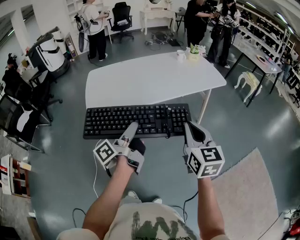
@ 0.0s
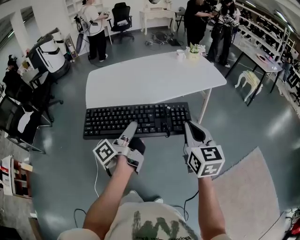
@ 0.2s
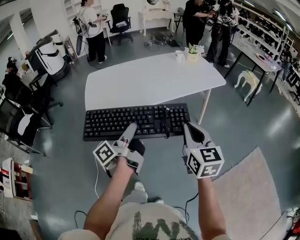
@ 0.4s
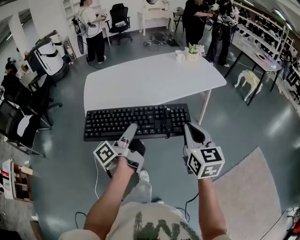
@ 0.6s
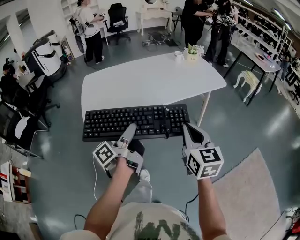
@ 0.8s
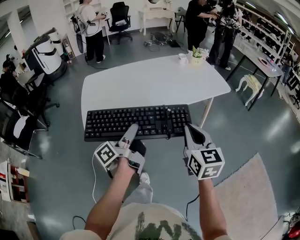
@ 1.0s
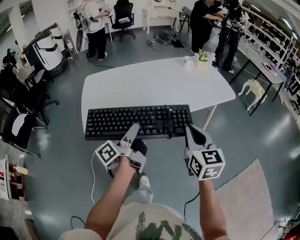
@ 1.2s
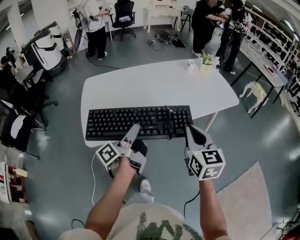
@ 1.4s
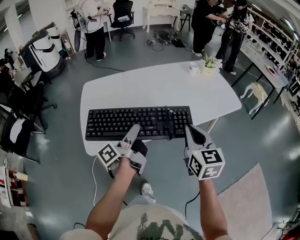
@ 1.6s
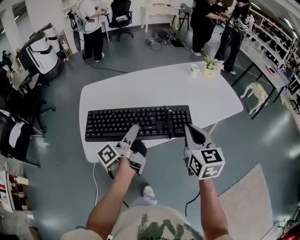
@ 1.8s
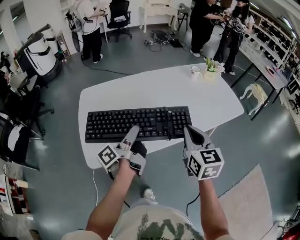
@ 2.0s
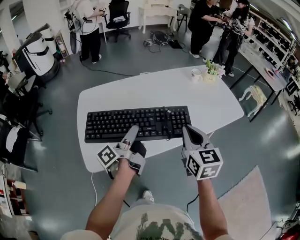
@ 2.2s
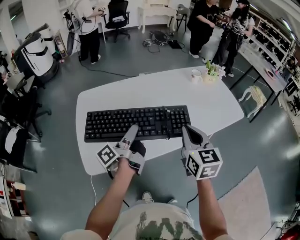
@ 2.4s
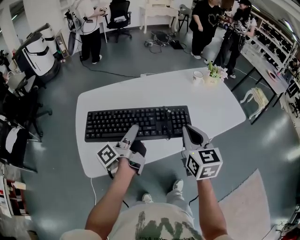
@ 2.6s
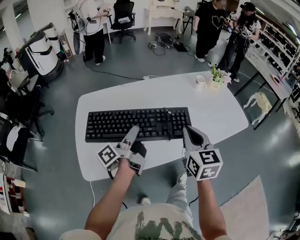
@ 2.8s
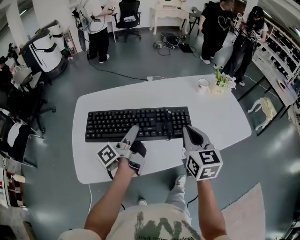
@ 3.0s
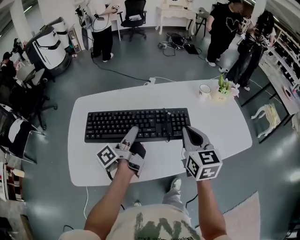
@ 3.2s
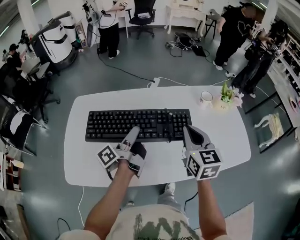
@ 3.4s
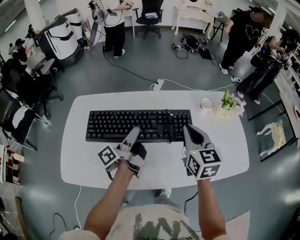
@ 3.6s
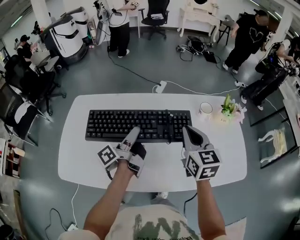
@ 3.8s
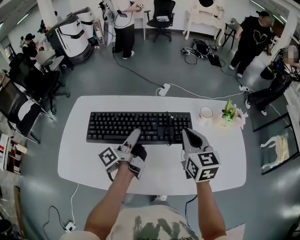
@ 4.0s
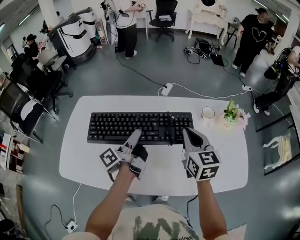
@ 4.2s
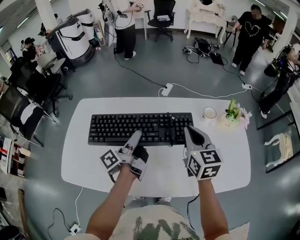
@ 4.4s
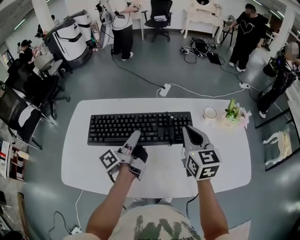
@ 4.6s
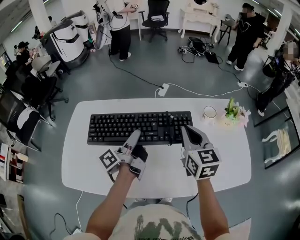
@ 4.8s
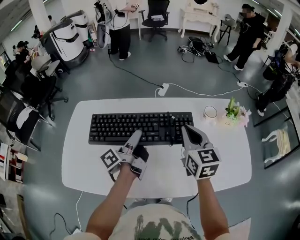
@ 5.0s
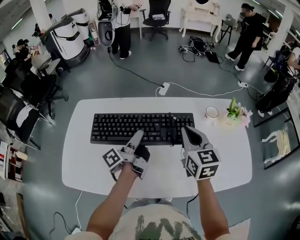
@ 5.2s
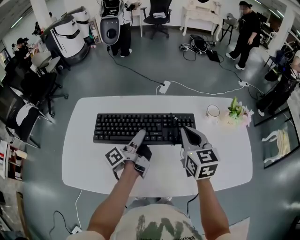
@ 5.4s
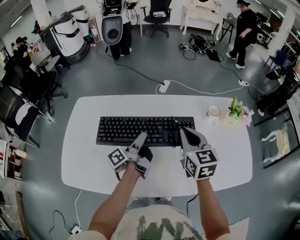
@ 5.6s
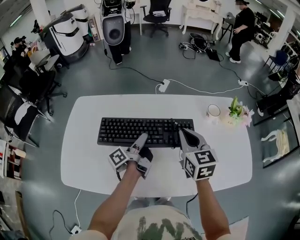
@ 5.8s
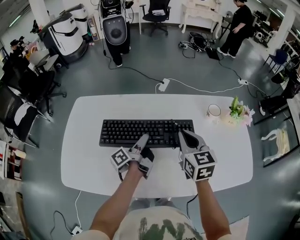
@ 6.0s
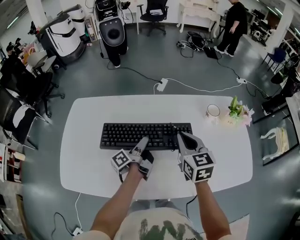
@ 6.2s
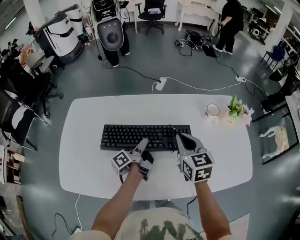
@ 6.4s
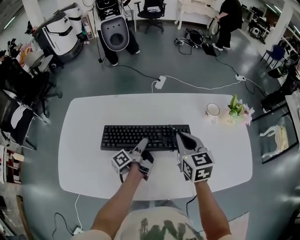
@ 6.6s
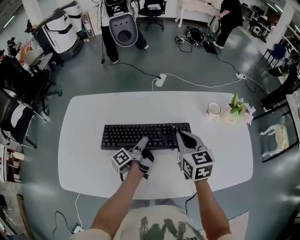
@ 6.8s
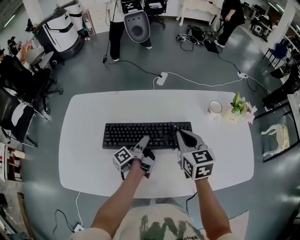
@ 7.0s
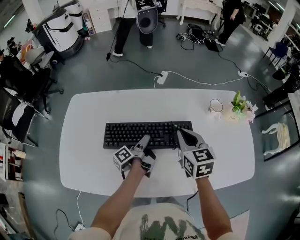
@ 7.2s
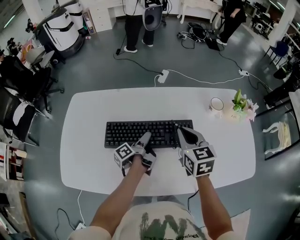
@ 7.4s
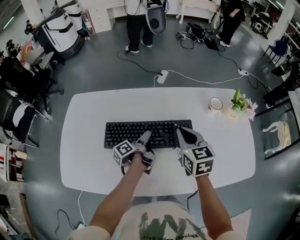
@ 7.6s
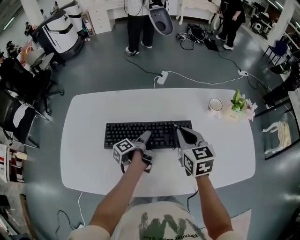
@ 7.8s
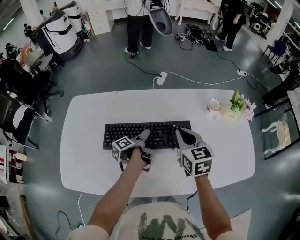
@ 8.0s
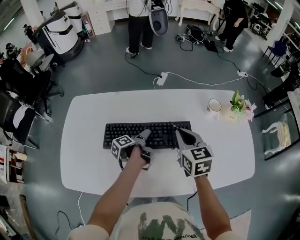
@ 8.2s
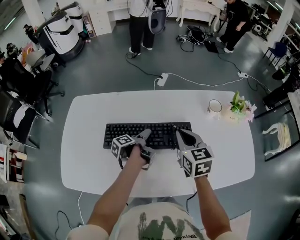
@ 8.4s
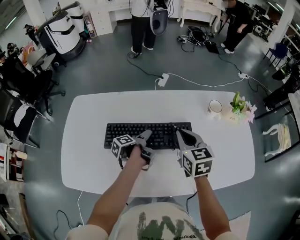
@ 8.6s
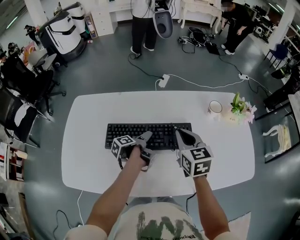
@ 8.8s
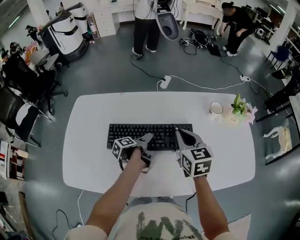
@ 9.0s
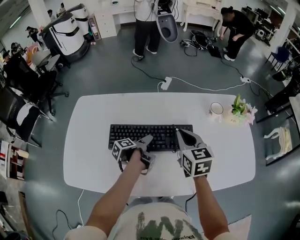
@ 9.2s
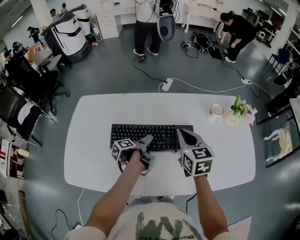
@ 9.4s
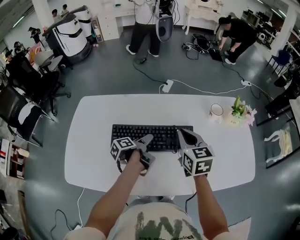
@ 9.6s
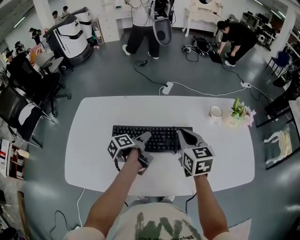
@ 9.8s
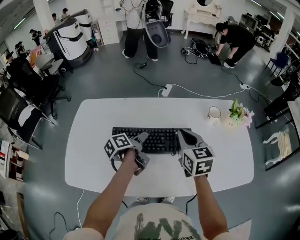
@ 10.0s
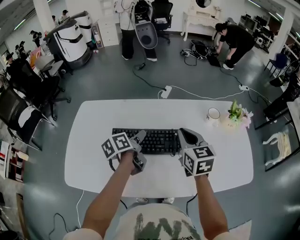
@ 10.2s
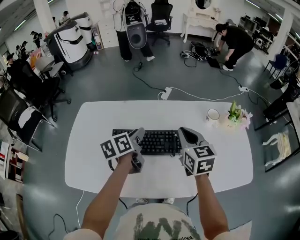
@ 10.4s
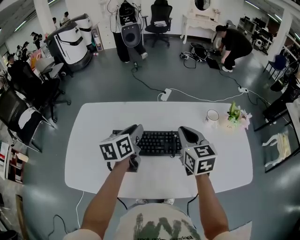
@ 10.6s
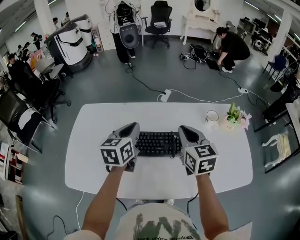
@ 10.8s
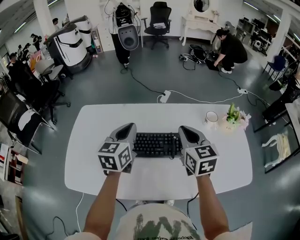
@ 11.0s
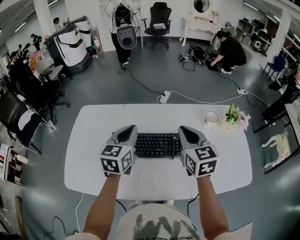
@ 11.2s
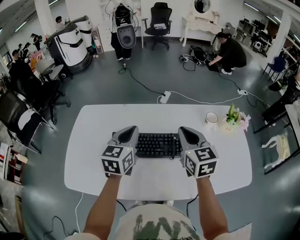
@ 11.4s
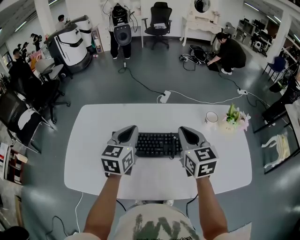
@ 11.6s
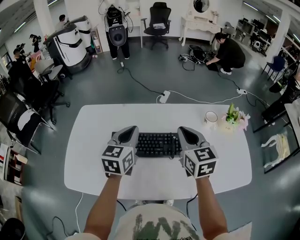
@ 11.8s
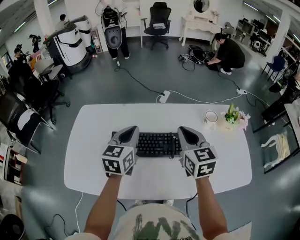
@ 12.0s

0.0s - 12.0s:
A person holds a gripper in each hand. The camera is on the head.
0.0s - 1.6s: The right gripper changes place by about 25 cm.
1.6s - 3.0s: The right gripper ends up roughly 20 cm from where it was.
3.0s - 4.4s: The right gripper changes place by roughly 20 cm.
4.4s - 6.0s: The right gripper moves roughly 5 cm.
9.0s - 10.4s: The right gripper goes some 5 cm upward.

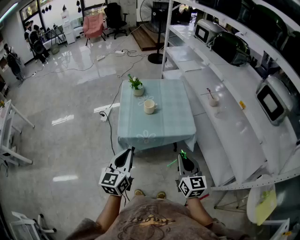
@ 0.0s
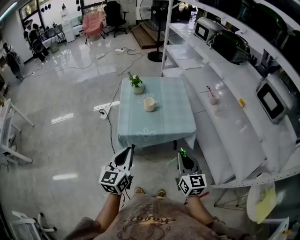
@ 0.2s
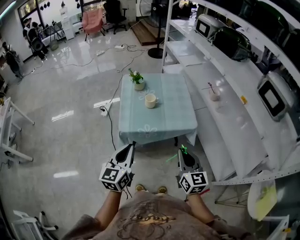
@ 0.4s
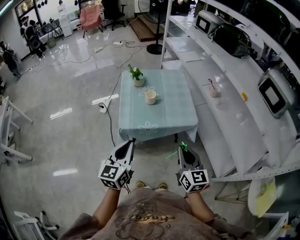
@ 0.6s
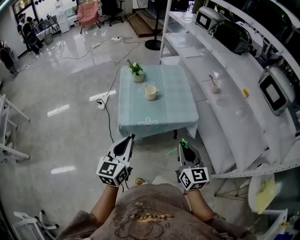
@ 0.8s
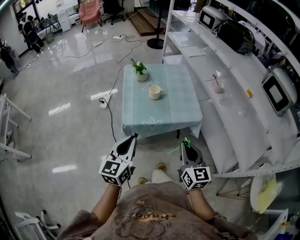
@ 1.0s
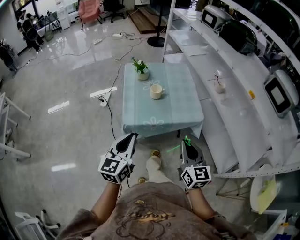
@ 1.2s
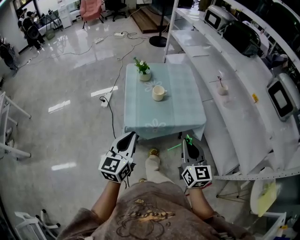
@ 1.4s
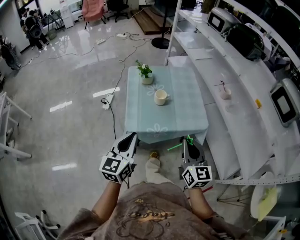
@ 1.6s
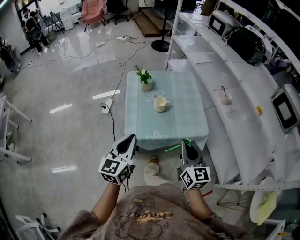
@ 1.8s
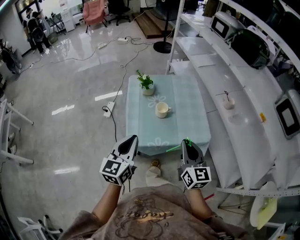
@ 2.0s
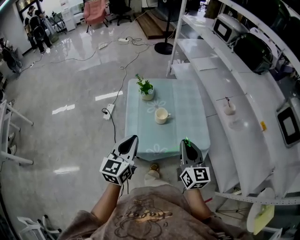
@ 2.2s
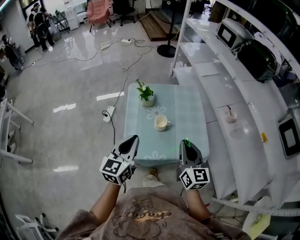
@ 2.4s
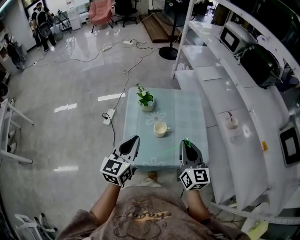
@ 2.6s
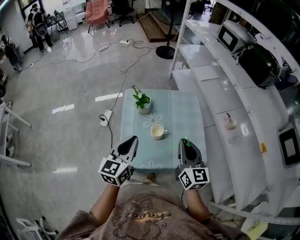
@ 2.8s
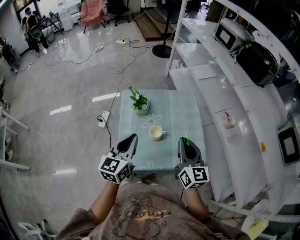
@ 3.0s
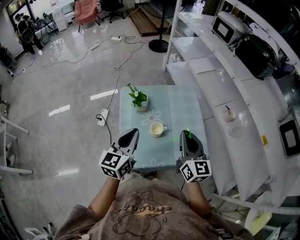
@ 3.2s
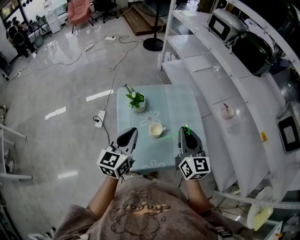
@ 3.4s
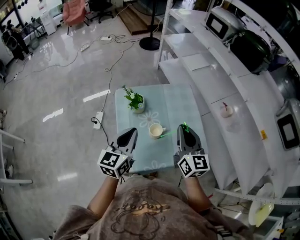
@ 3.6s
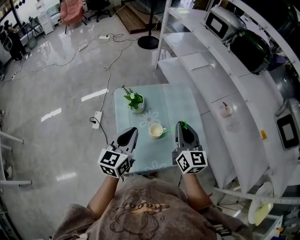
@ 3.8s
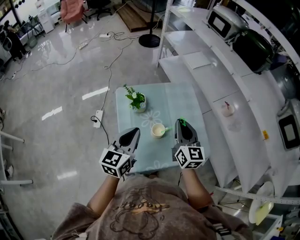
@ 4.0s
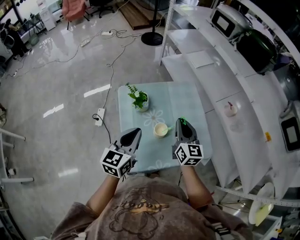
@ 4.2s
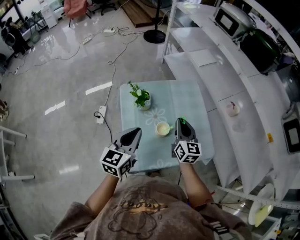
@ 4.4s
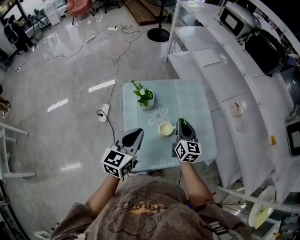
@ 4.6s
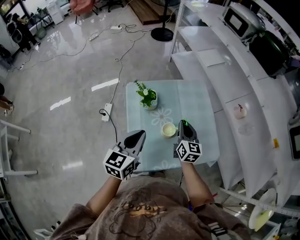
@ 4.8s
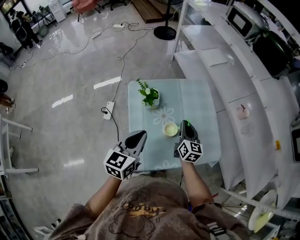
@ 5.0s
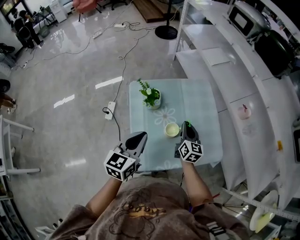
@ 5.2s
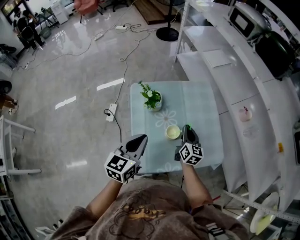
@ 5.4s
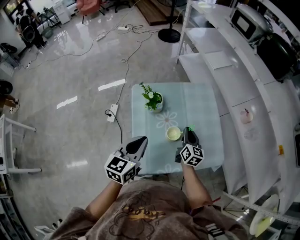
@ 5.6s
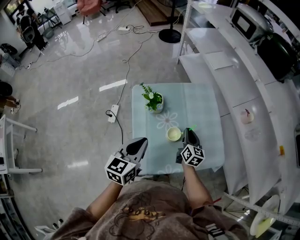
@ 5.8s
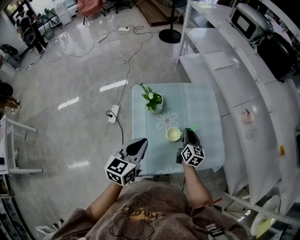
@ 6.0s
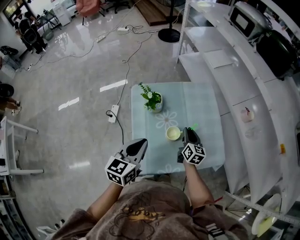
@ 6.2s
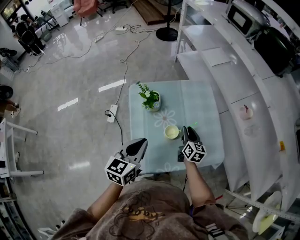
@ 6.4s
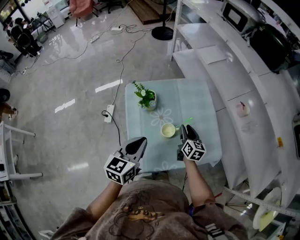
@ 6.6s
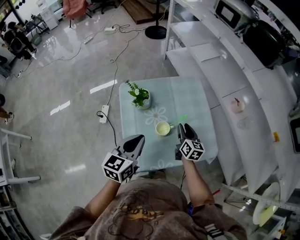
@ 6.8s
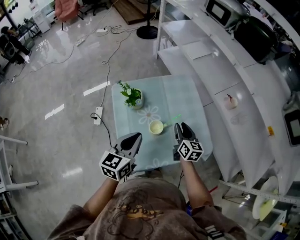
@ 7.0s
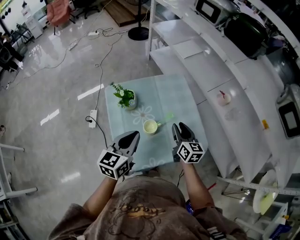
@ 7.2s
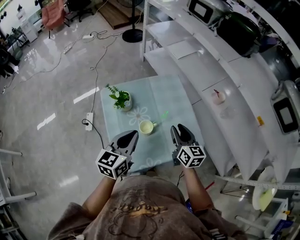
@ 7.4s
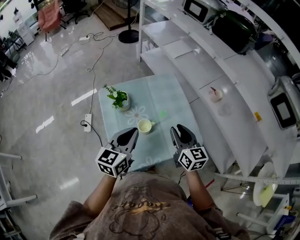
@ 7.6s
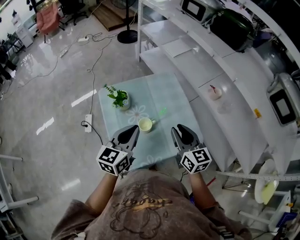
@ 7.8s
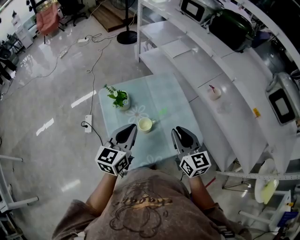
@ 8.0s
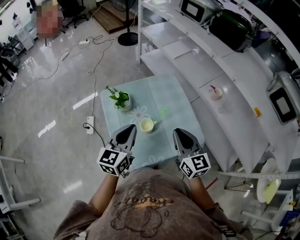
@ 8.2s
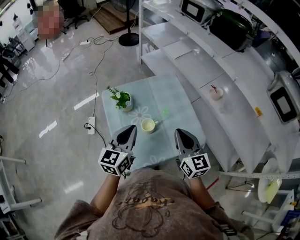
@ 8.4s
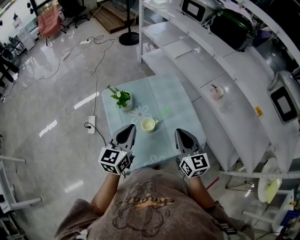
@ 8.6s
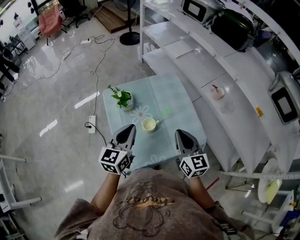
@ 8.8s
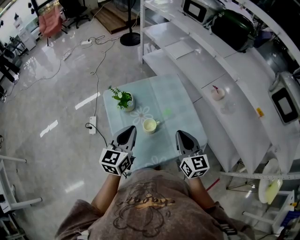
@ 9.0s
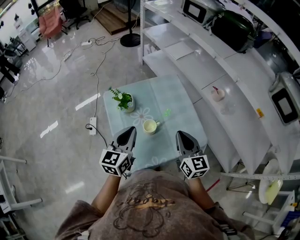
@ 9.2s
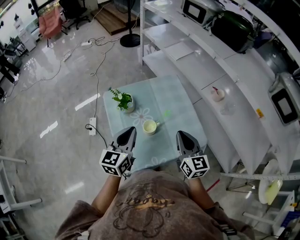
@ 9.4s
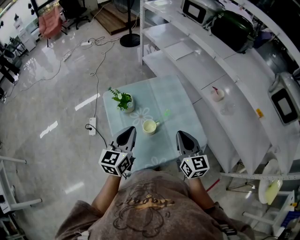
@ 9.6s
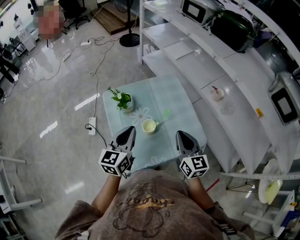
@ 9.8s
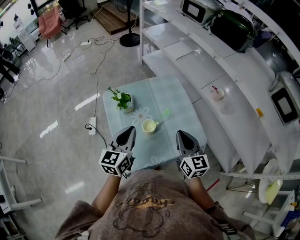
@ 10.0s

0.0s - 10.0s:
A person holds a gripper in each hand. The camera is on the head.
0.0s - 1.4s: The grippers both shift to the left and forward by about 10 cm.
1.4s - 2.8s: The grippers both shift forward by approximately 30 cm.
2.8s - 4.2s: The left gripper heads forward, covering roughly 10 cm; the right gripper travels forward, downward and to the left by about 15 cm.
4.2s - 5.8s: The right gripper goes some 15 cm downward.
5.8s - 7.2s: The left gripper moves to the right, about 5 cm; the right gripper travels to the right and upward by some 10 cm, and opens.
7.2s - 8.6s: The right gripper shifts roughly 15 cm upward and backward, and closes.
8.6s - 10.0s: The grippers move only a little.

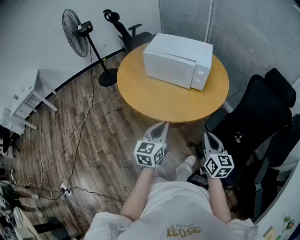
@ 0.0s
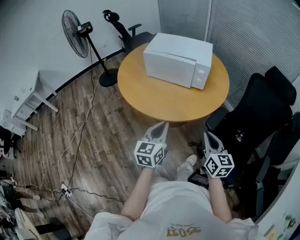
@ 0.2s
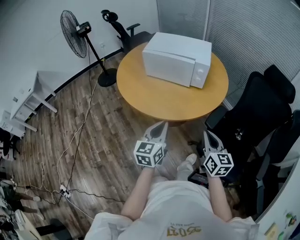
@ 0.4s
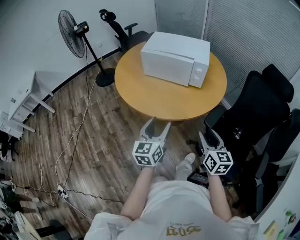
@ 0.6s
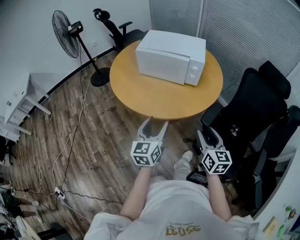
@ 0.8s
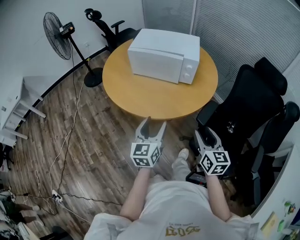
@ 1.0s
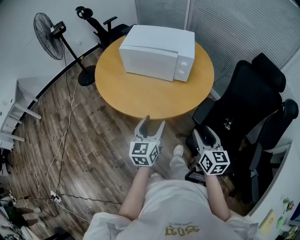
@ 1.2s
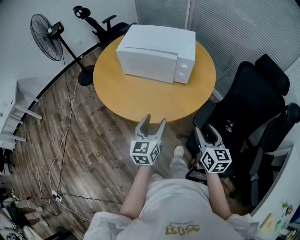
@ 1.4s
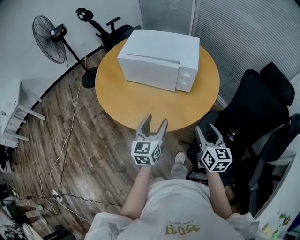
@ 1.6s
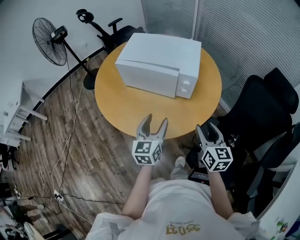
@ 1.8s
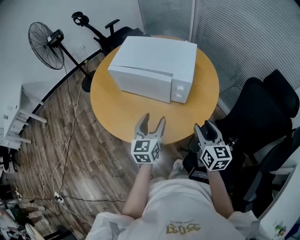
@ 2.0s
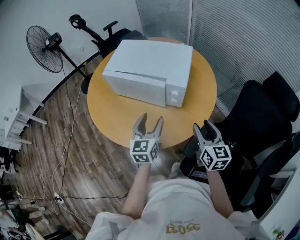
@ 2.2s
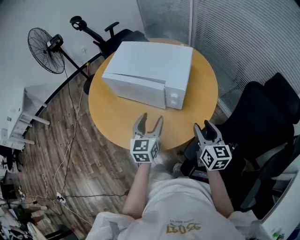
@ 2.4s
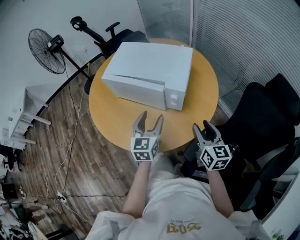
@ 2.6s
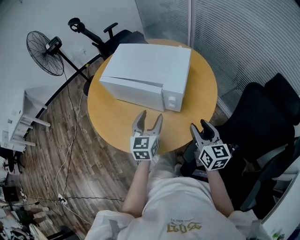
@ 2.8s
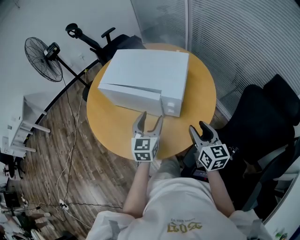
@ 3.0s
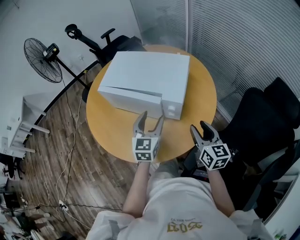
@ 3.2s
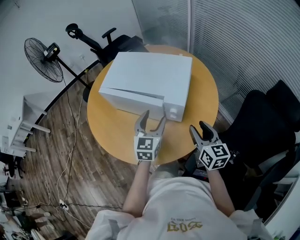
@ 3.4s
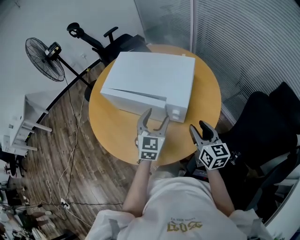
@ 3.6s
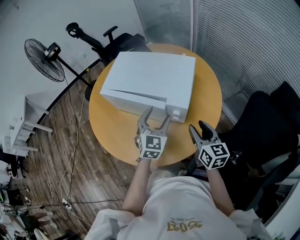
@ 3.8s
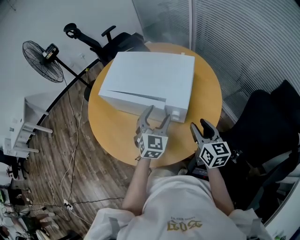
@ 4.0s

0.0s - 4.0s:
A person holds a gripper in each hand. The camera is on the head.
0.0s - 1.4s: Both grippers travel together forward, about 5 cm. The right gripper opens up, while the left gripper opens its fingers.
1.4s - 2.6s: The grippers both shift forward and to the right by about 20 cm.
2.6s - 4.0s: Both grippers travel together forward, approximately 10 cm. The left gripper rotates some 30 degrees.
